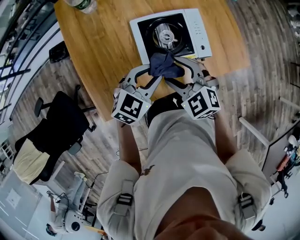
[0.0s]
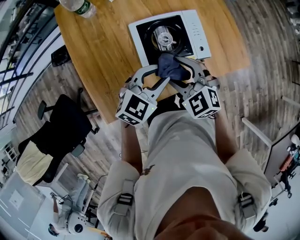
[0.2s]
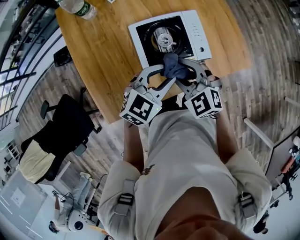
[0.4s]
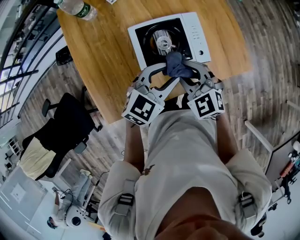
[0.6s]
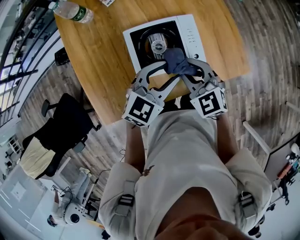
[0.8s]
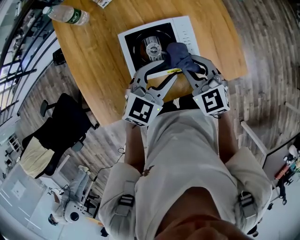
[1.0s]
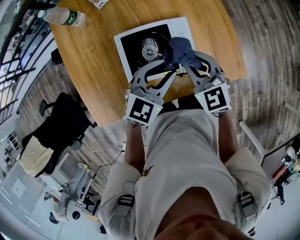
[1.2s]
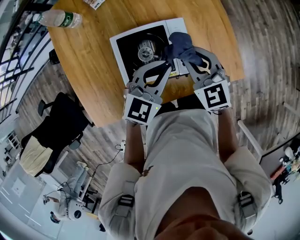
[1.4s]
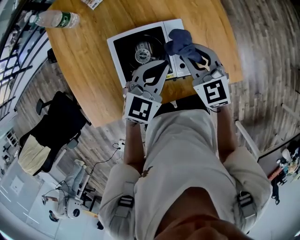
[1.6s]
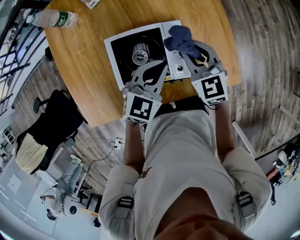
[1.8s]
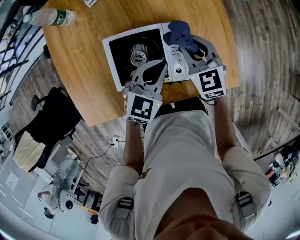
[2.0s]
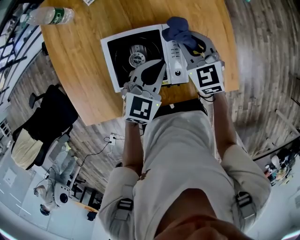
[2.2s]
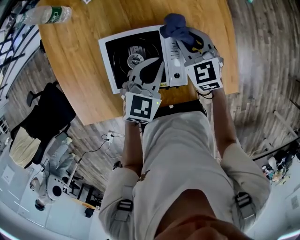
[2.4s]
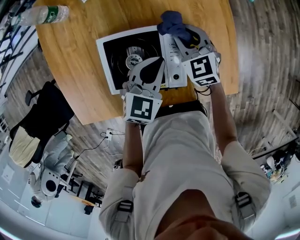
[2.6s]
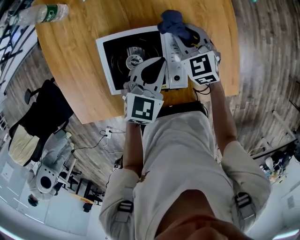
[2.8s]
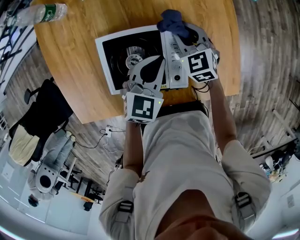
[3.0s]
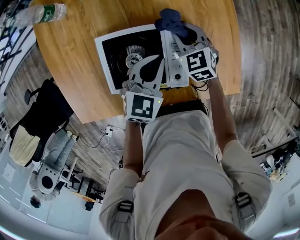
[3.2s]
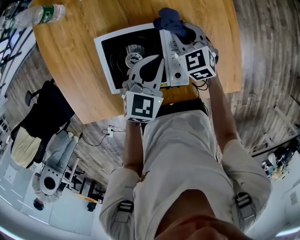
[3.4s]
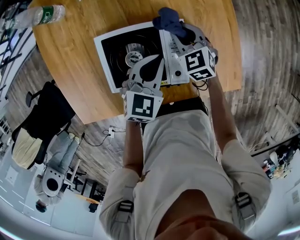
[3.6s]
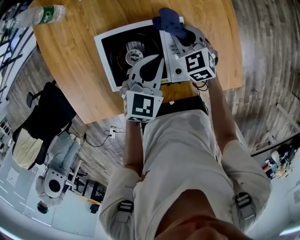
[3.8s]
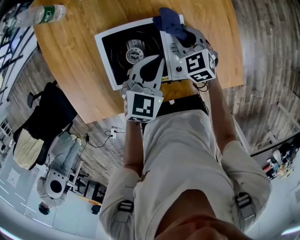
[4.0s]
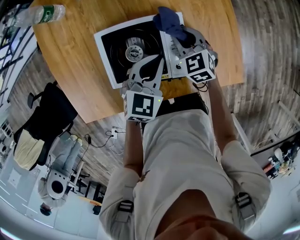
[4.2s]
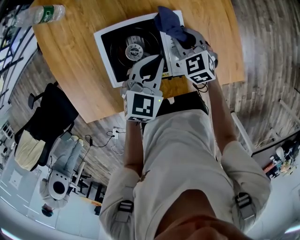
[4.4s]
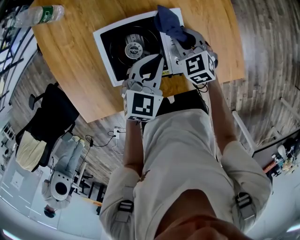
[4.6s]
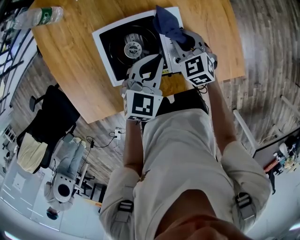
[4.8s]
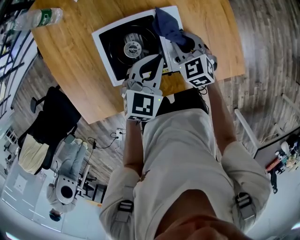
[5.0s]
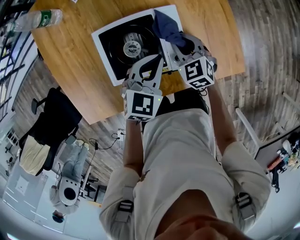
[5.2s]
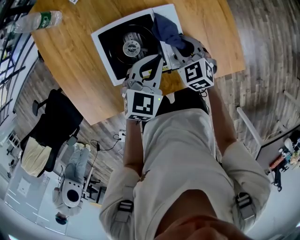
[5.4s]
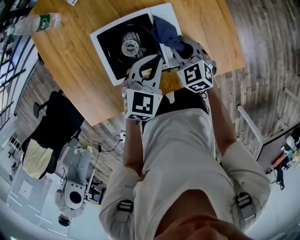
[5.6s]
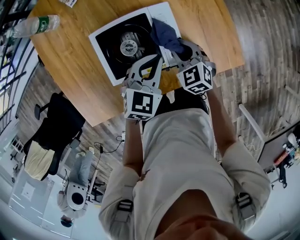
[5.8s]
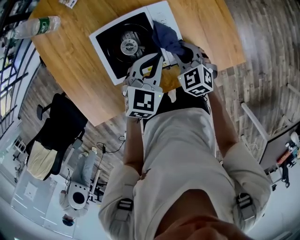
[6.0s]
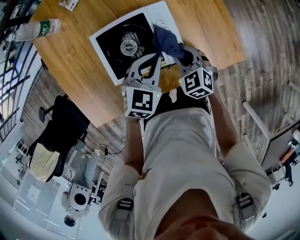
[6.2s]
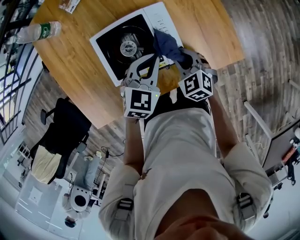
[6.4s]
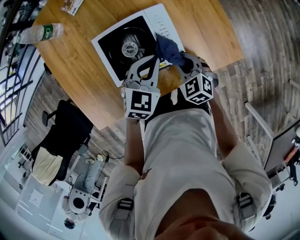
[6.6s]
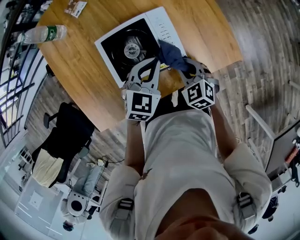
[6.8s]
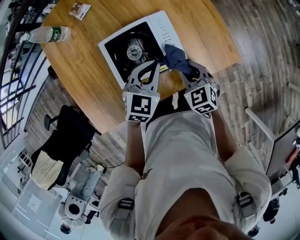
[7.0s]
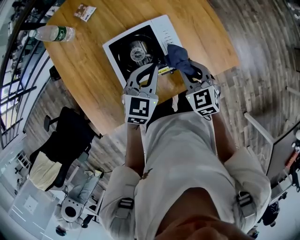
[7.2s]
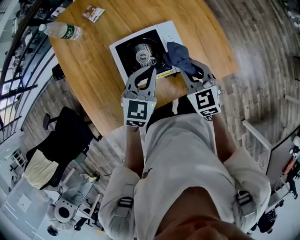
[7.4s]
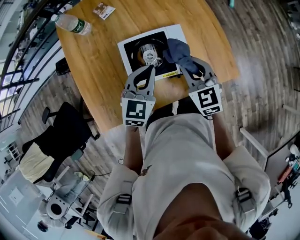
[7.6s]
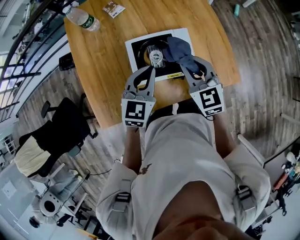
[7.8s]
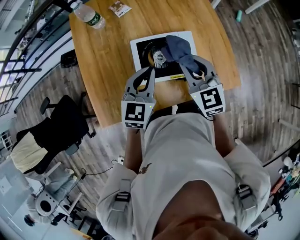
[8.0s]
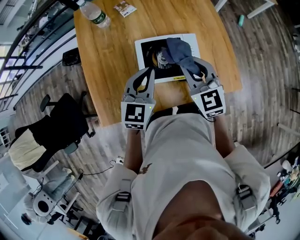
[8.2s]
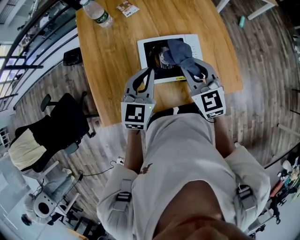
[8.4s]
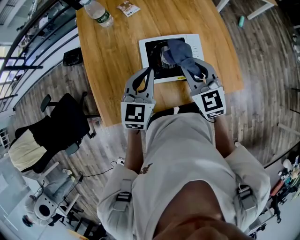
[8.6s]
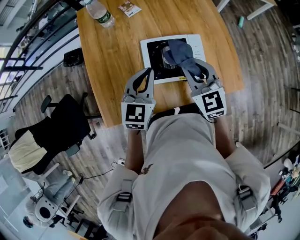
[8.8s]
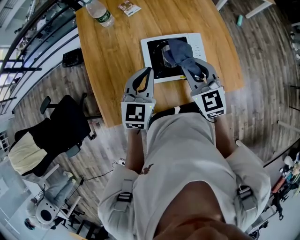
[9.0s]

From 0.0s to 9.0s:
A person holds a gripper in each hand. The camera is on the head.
From 0.0s to 1.6s: The left gripper heads to the right and forward, covering approximately 20 cm, and closes up. The right gripper heads forward and to the right, covering roughly 25 cm, changes its angle by approximately 20 degrees, and closes up.
From 1.6s to 3.0s: The right gripper moves downward and forward, roughly 15 cm; the left gripper moves downward and forward, approximately 10 cm.
From 3.0s to 4.4s: The right gripper is displaced backward by about 5 cm.
From 4.4s to 6.0s: The right gripper heads backward, covering approximately 10 cm.
From 6.0s to 7.6s: The right gripper is displaced upward by roughly 20 cm, and turns by some 20 degrees. The left gripper goes approximately 15 cm upward and to the left.
From 7.6s to 9.0s: The left gripper shifts roughly 10 cm to the left. The right gripper moves to the left and upward, some 15 cm.

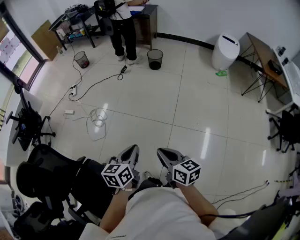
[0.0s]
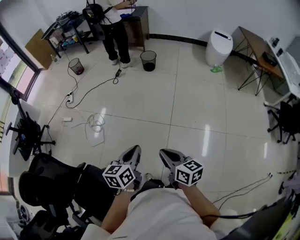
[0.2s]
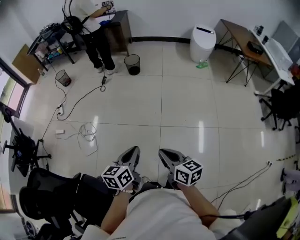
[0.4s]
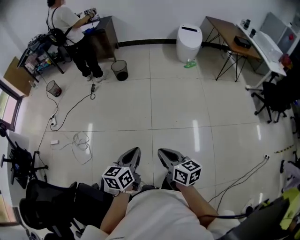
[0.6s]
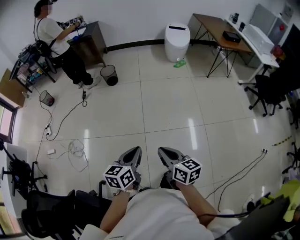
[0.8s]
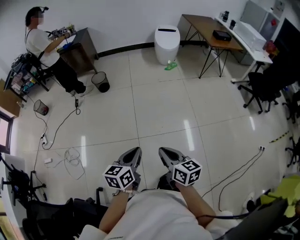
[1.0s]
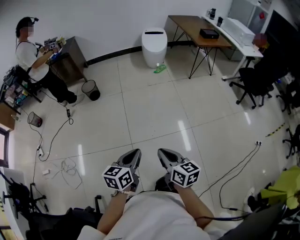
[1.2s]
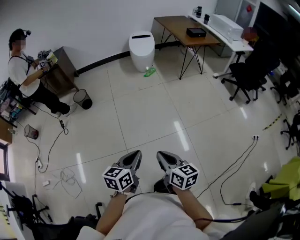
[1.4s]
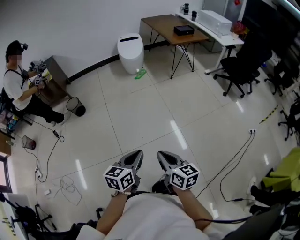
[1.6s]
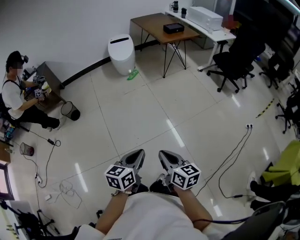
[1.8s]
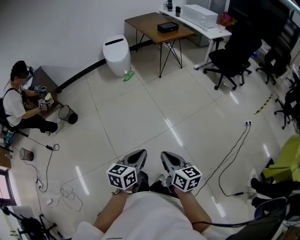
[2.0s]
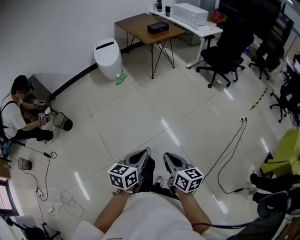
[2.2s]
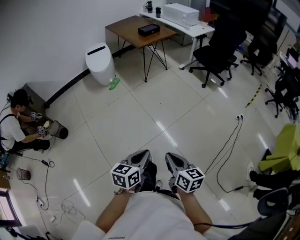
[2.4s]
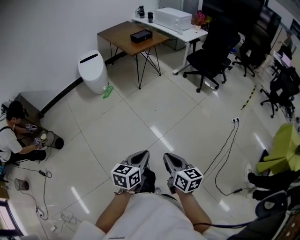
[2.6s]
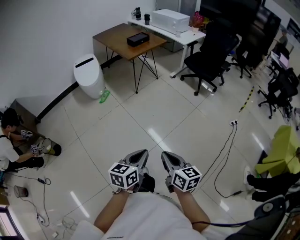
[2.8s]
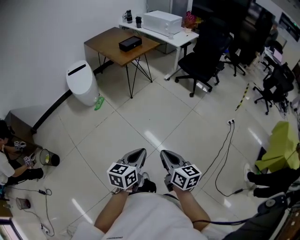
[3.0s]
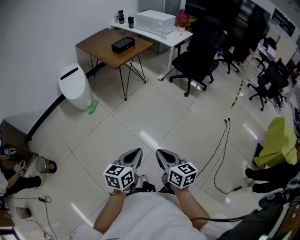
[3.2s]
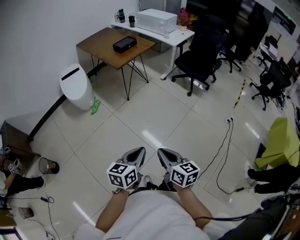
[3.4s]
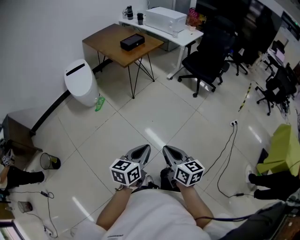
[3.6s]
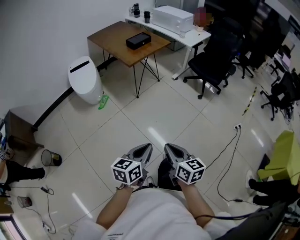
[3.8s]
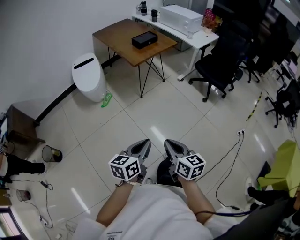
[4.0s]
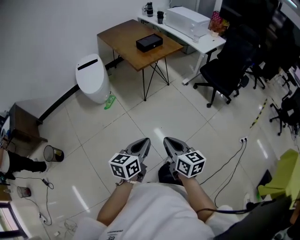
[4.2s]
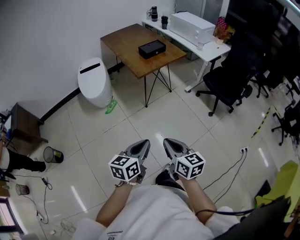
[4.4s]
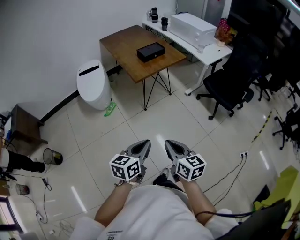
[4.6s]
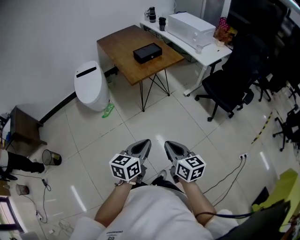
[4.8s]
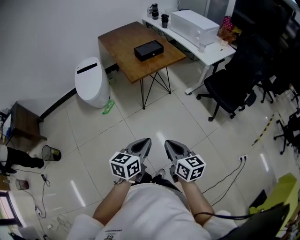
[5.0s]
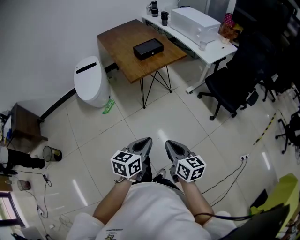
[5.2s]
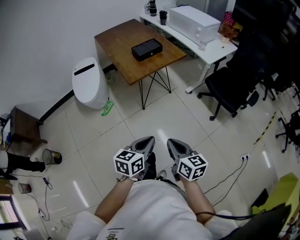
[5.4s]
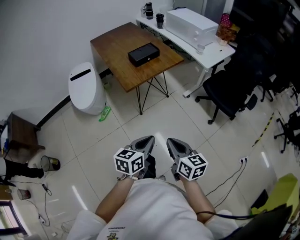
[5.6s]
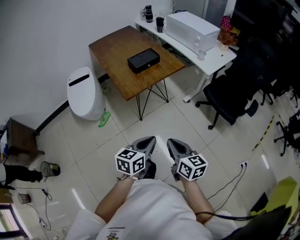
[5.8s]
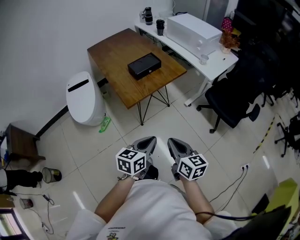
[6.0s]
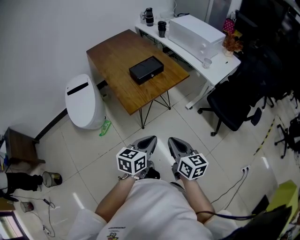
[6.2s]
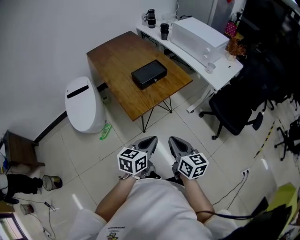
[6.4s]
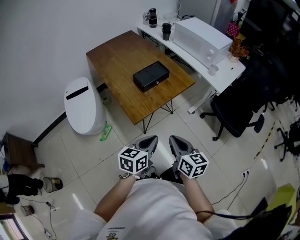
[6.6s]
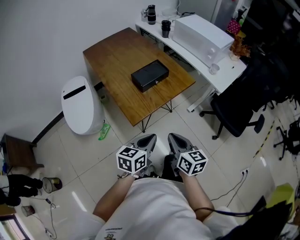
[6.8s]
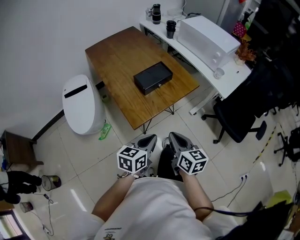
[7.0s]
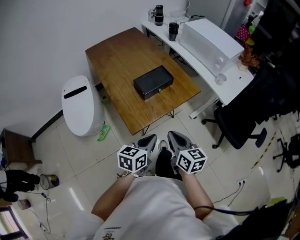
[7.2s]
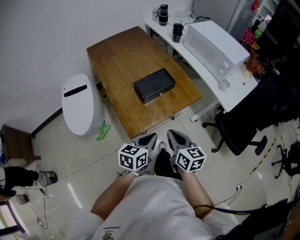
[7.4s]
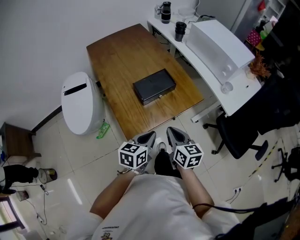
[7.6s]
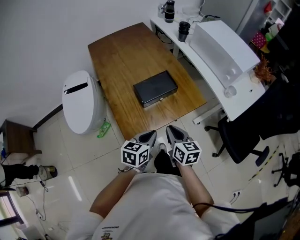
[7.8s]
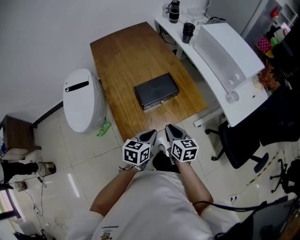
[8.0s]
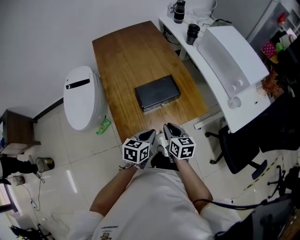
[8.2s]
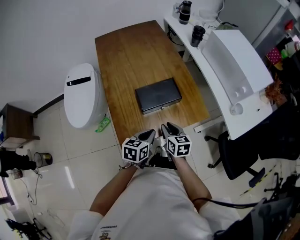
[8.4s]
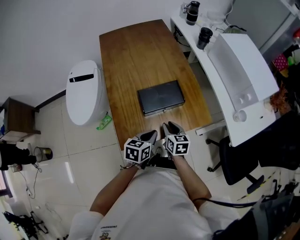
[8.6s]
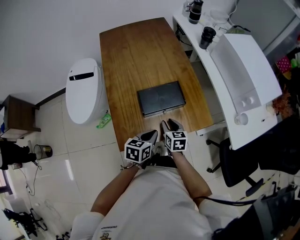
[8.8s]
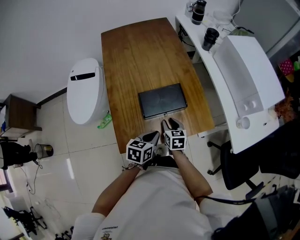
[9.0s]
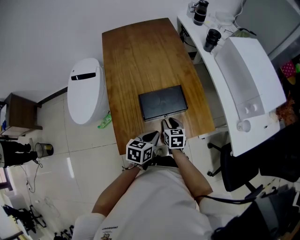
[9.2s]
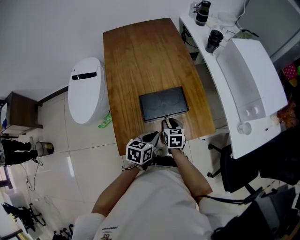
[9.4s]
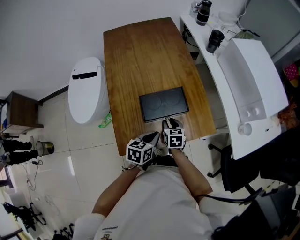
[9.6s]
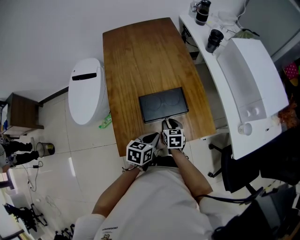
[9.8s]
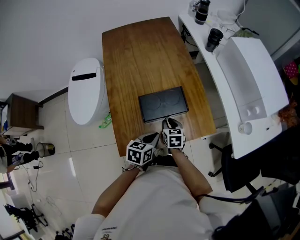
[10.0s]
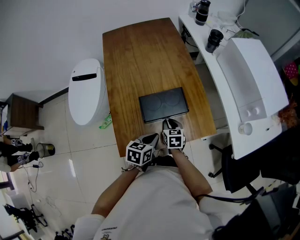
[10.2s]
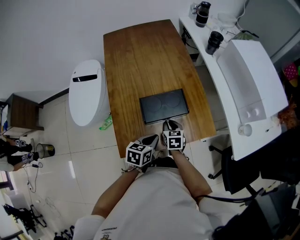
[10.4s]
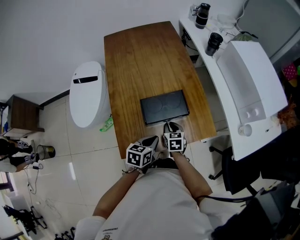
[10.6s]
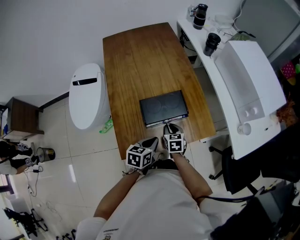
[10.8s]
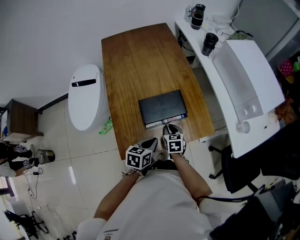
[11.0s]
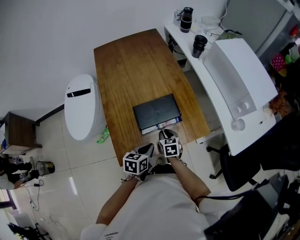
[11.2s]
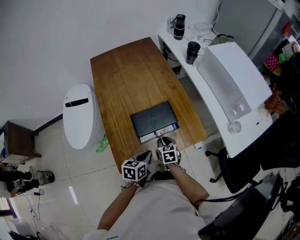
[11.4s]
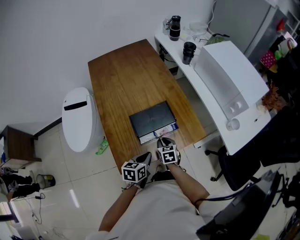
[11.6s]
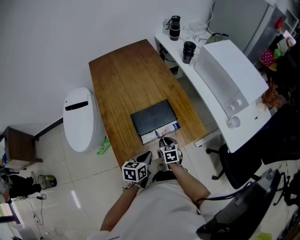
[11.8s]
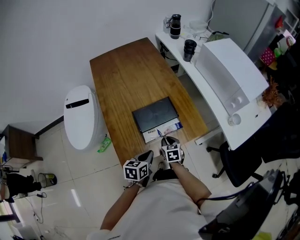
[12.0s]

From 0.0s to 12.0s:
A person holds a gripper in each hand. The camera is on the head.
From 0.0s to 1.6s: Both grippers are carried approximately 50 cm. The right gripper rotates approximately 40 degrees. The left gripper turns by roughly 50 degrees.
From 1.6s to 3.0s: The right gripper ends up roughly 30 cm from where it was, and swivels some 30 degrees. Meanwhile the left gripper ends up roughly 35 cm from where it was, and changes its angle by some 20 degrees.
From 3.0s to 4.4s: Both grippers travel together forward, some 30 cm.
From 4.4s to 6.0s: Both grippers travel together forward, some 35 cm.
From 6.0s to 7.6s: Both grippers travel together forward, approximately 35 cm.
From 7.6s to 9.0s: The left gripper shifts about 15 cm forward and downward. The right gripper is displaced forward and downward by about 25 cm, swivels roughly 20 degrees, and opens.
From 9.0s to 10.4s: The grippers move only a little.
From 10.4s to 12.0s: The grippers both shift backward by about 5 cm.

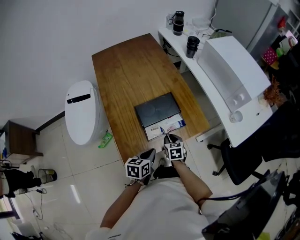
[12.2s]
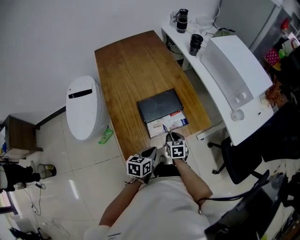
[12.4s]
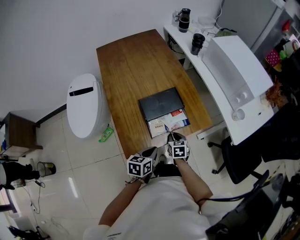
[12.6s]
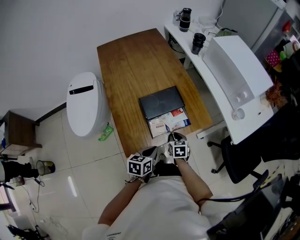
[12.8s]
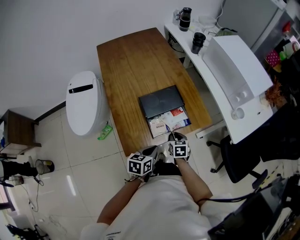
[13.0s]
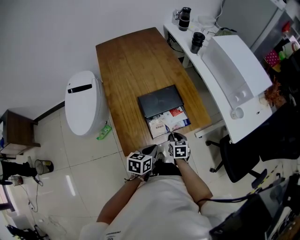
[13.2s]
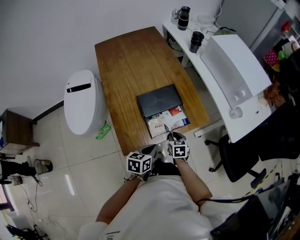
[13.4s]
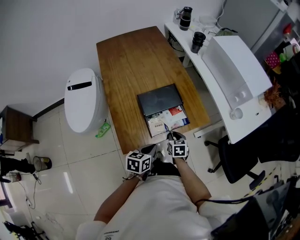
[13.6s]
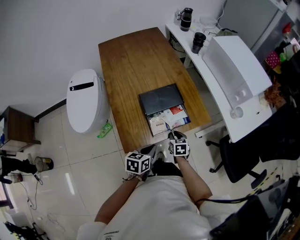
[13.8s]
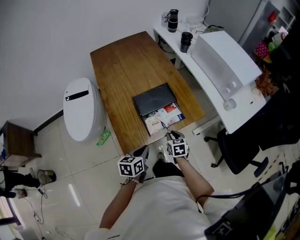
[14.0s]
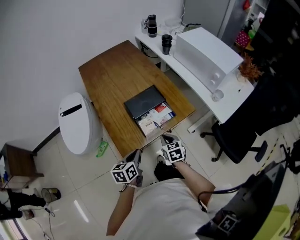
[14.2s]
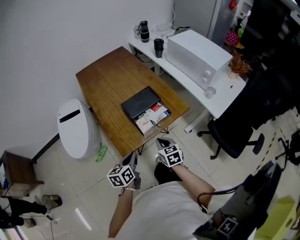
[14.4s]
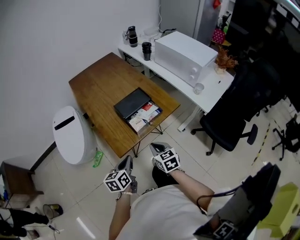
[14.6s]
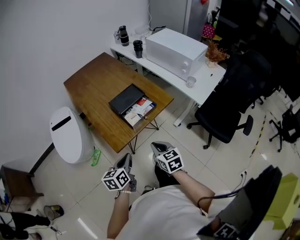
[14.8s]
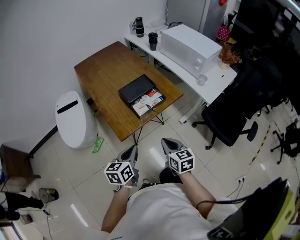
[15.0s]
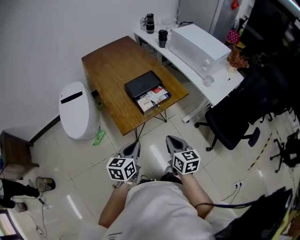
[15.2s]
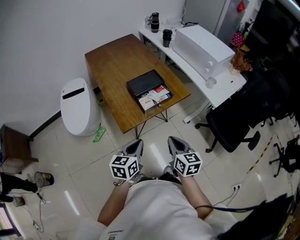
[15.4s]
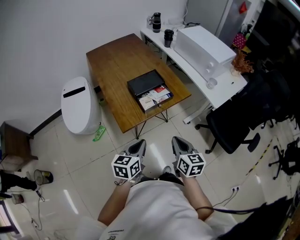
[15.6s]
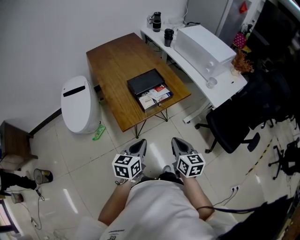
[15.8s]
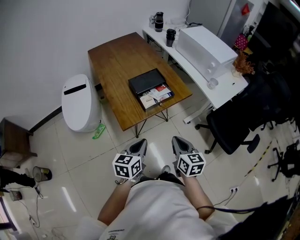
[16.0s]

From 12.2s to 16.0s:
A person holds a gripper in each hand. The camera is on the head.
From 12.2s to 13.4s: The grippers move only a little.
From 13.4s to 14.8s: The right gripper heads backward and upward, covering roughly 30 cm, while the left gripper goes approximately 20 cm backward, upward and to the left.
From 14.8s to 16.0s: Both grippers move to the right, about 5 cm.
